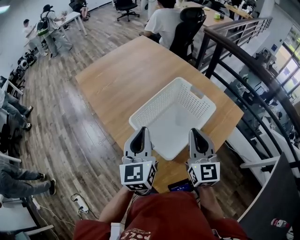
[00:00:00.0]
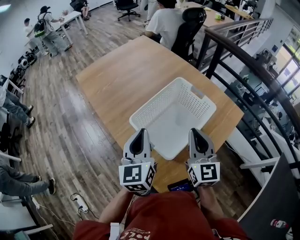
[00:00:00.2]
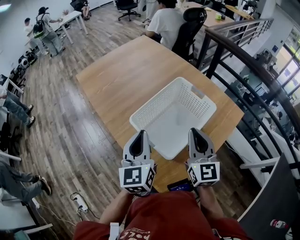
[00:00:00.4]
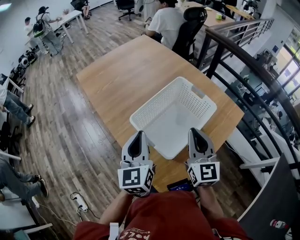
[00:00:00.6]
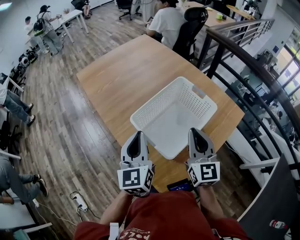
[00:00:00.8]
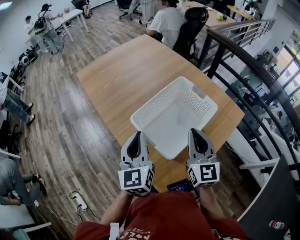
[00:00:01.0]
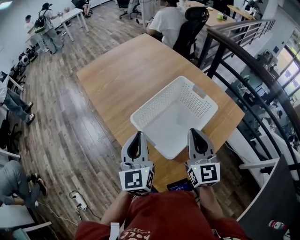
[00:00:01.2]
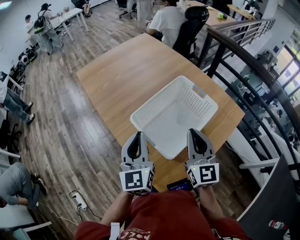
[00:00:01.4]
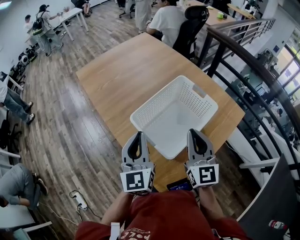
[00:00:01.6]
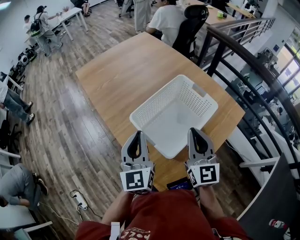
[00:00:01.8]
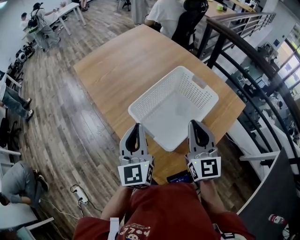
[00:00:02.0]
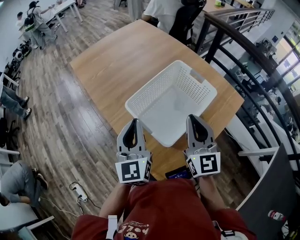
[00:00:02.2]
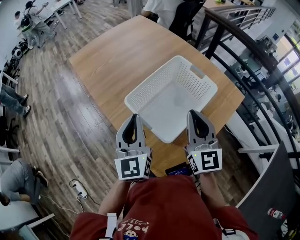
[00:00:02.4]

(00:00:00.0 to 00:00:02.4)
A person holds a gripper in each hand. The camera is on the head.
00:00:00.0 - 00:00:02.4: The grippers move only a little.

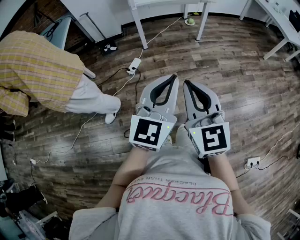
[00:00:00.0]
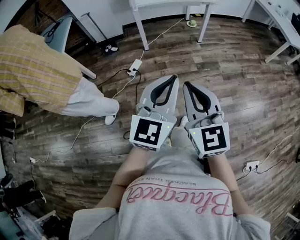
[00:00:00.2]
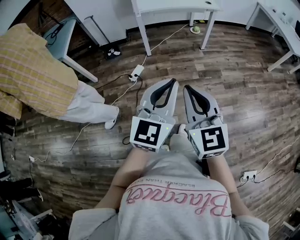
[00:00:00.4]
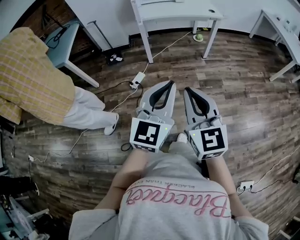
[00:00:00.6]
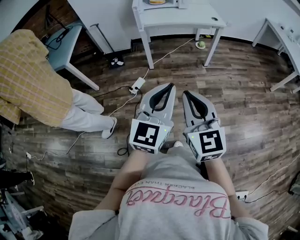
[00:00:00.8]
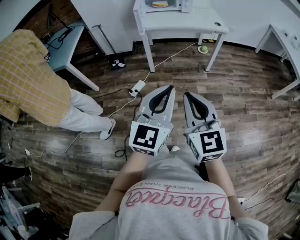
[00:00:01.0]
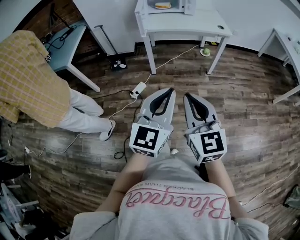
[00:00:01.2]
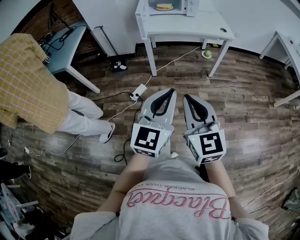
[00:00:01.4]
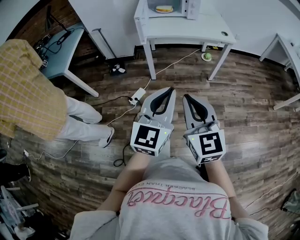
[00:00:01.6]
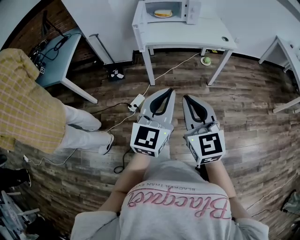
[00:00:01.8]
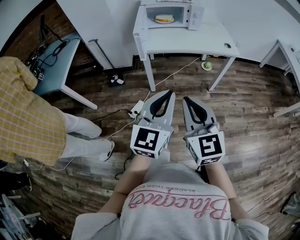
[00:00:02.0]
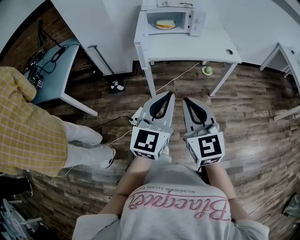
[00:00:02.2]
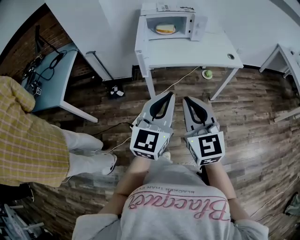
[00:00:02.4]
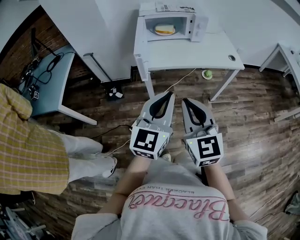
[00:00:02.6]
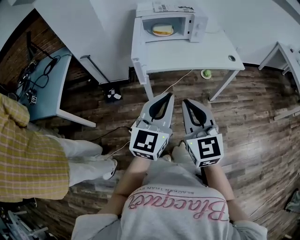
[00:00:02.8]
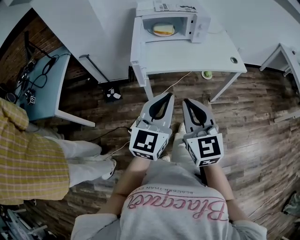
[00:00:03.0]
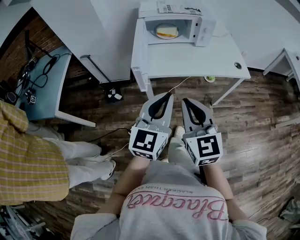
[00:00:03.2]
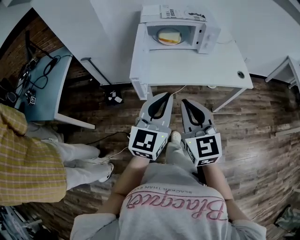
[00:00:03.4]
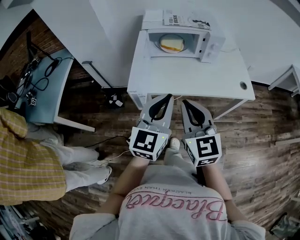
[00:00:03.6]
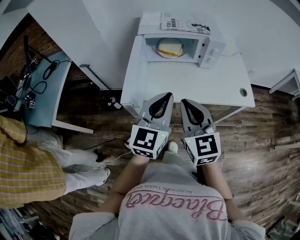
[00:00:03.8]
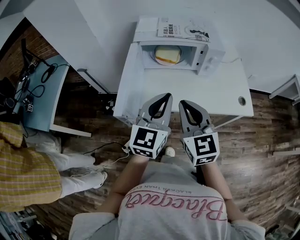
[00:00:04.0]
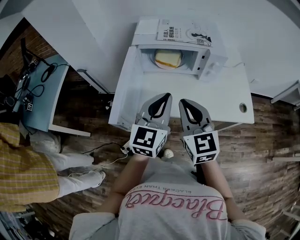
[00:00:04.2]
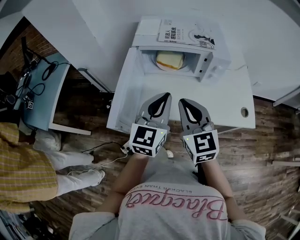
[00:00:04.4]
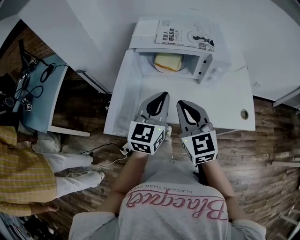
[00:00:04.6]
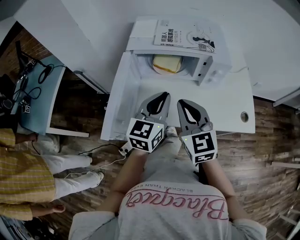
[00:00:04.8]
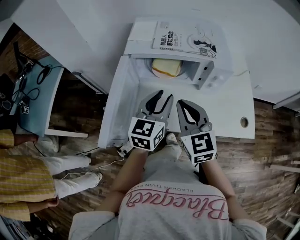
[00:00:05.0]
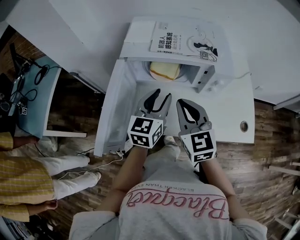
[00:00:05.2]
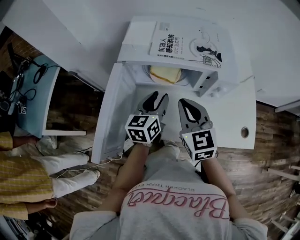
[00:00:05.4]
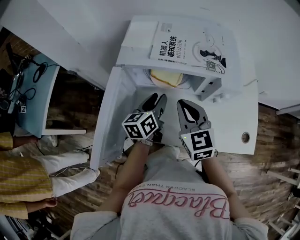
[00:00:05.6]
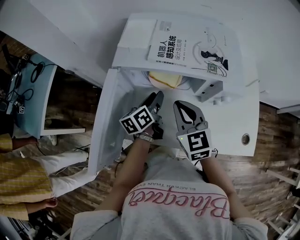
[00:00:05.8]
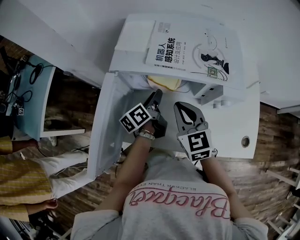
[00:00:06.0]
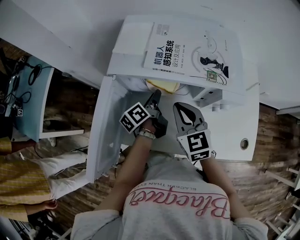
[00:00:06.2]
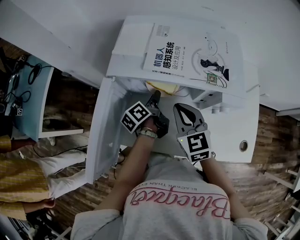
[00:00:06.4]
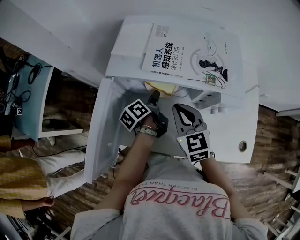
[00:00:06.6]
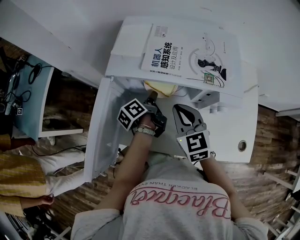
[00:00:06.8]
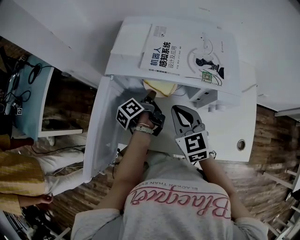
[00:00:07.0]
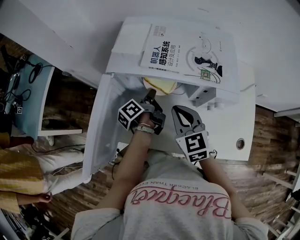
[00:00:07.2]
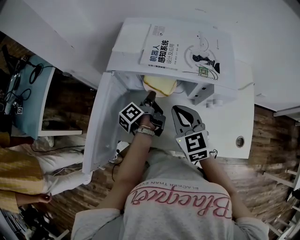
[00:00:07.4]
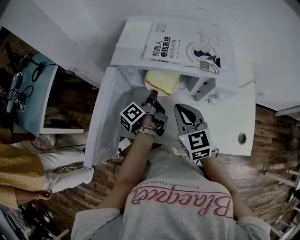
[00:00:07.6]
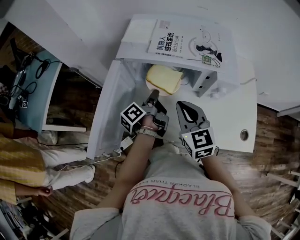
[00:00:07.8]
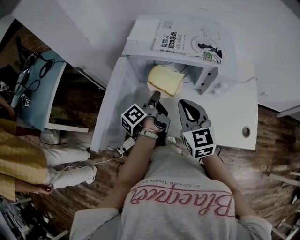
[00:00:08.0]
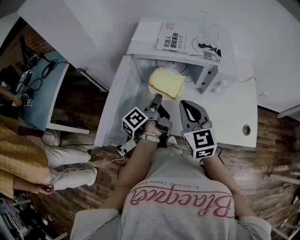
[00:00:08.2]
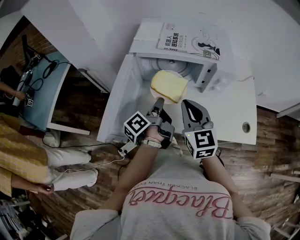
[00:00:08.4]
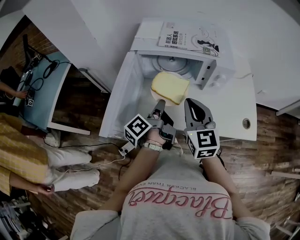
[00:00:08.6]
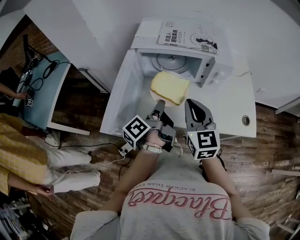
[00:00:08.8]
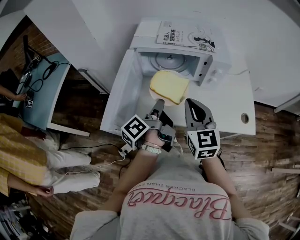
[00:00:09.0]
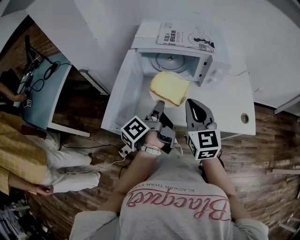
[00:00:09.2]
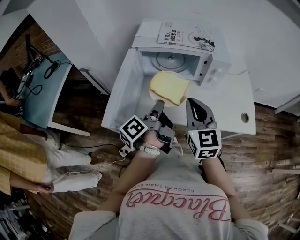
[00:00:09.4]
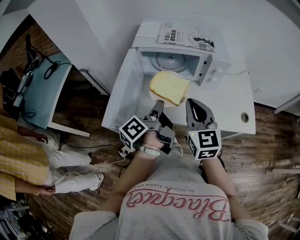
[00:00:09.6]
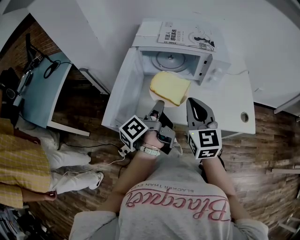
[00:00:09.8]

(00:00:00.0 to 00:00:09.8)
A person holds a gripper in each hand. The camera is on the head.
00:00:00.0 - 00:00:01.4: Both grippers move forward, some 25 cm.
00:00:01.4 - 00:00:02.8: Both grippers move forward, approximately 35 cm.
00:00:02.8 - 00:00:04.2: The two grippers go about 30 cm forward.
00:00:04.2 - 00:00:05.6: The two grippers go about 25 cm forward and downward. The left gripper swivels approximately 40 degrees, and opens its fingers.
00:00:05.6 - 00:00:07.0: The left gripper is displaced downward and forward by roughly 10 cm, twists approximately 50 degrees counterclockwise, seen from behind, and closes up.
00:00:07.0 - 00:00:08.4: The grippers both shift backward and upward by about 15 cm.
00:00:08.4 - 00:00:09.8: Both grippers move backward, some 5 cm.

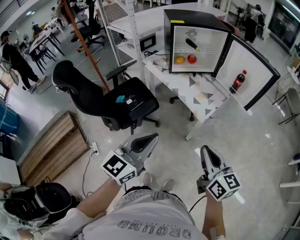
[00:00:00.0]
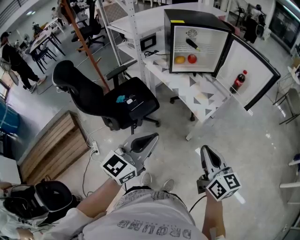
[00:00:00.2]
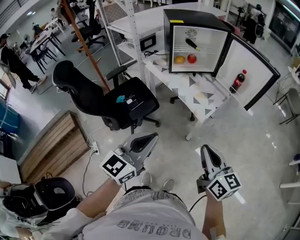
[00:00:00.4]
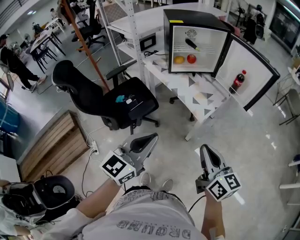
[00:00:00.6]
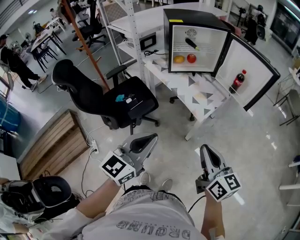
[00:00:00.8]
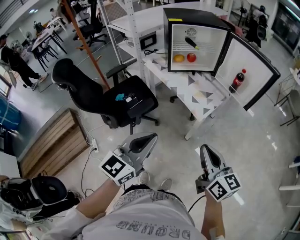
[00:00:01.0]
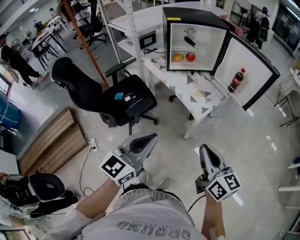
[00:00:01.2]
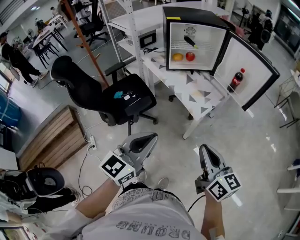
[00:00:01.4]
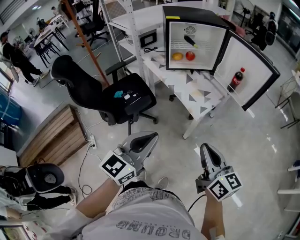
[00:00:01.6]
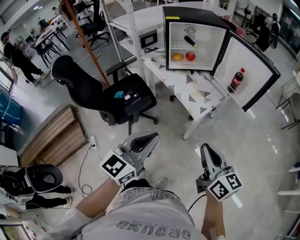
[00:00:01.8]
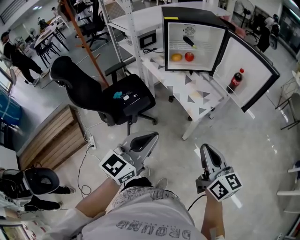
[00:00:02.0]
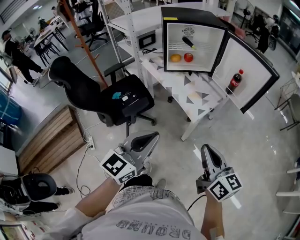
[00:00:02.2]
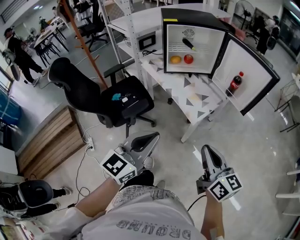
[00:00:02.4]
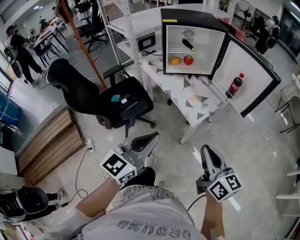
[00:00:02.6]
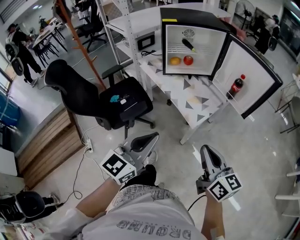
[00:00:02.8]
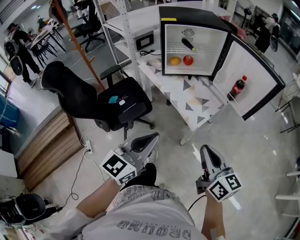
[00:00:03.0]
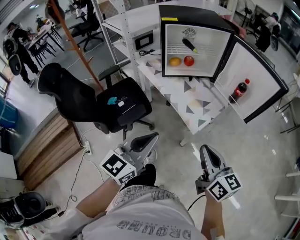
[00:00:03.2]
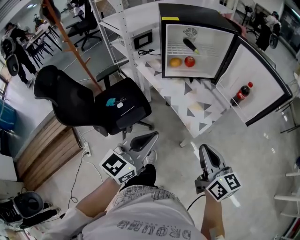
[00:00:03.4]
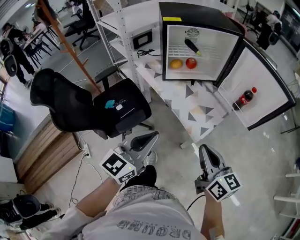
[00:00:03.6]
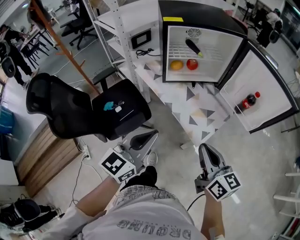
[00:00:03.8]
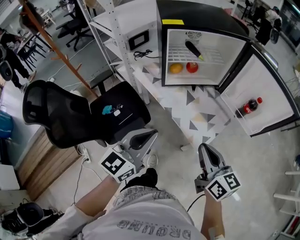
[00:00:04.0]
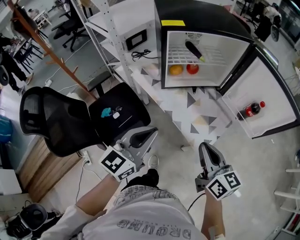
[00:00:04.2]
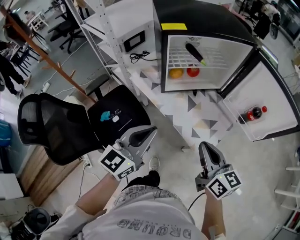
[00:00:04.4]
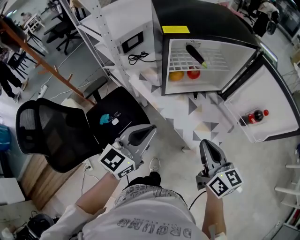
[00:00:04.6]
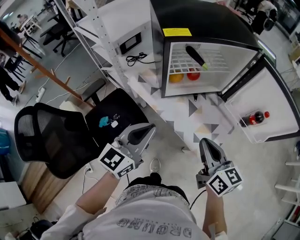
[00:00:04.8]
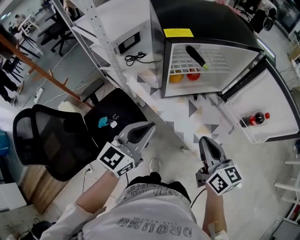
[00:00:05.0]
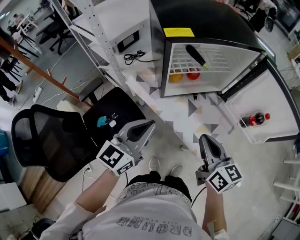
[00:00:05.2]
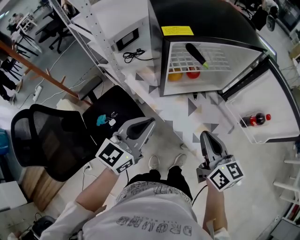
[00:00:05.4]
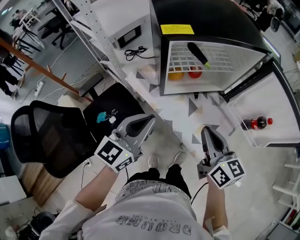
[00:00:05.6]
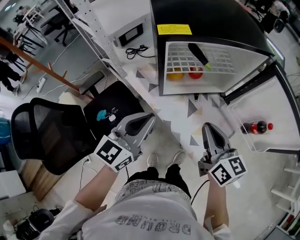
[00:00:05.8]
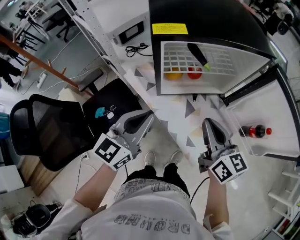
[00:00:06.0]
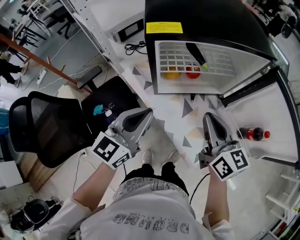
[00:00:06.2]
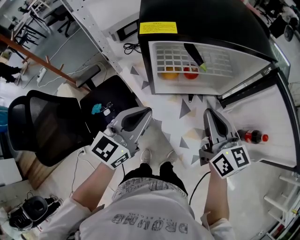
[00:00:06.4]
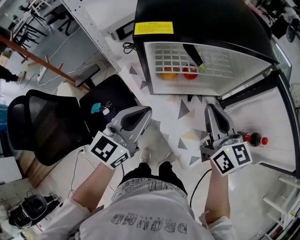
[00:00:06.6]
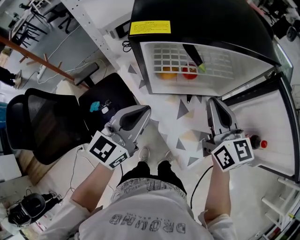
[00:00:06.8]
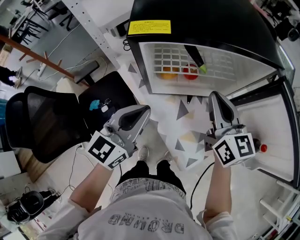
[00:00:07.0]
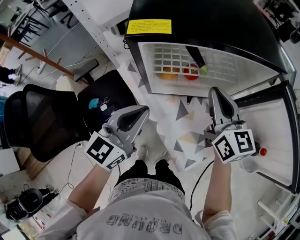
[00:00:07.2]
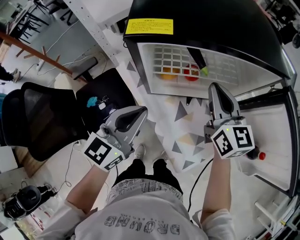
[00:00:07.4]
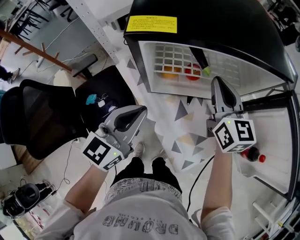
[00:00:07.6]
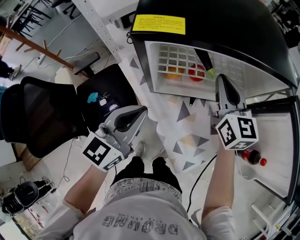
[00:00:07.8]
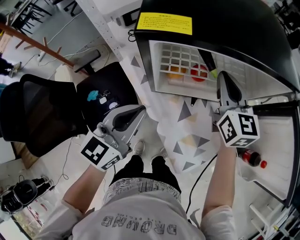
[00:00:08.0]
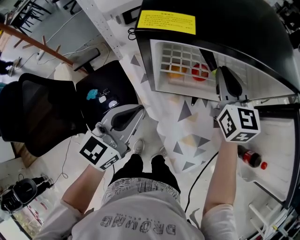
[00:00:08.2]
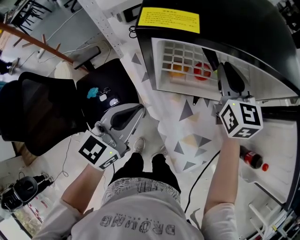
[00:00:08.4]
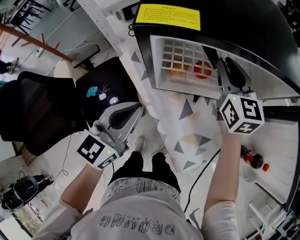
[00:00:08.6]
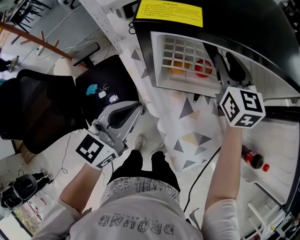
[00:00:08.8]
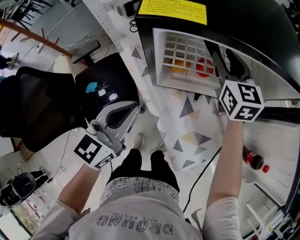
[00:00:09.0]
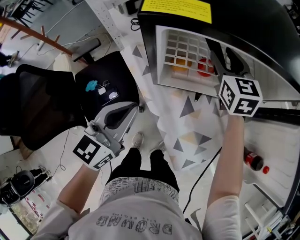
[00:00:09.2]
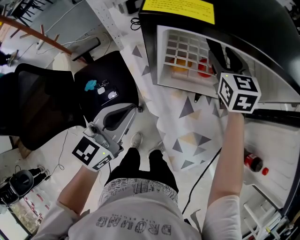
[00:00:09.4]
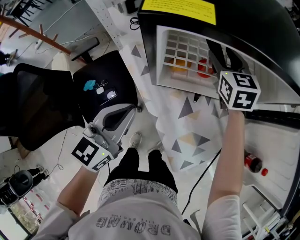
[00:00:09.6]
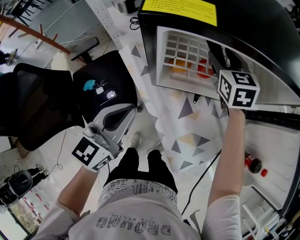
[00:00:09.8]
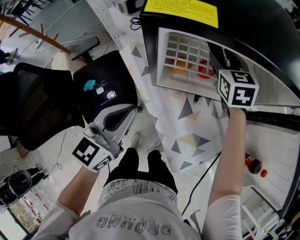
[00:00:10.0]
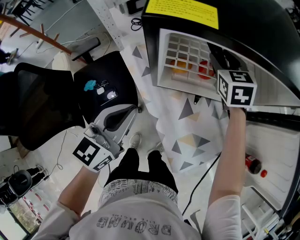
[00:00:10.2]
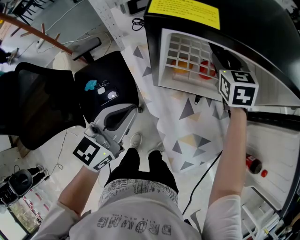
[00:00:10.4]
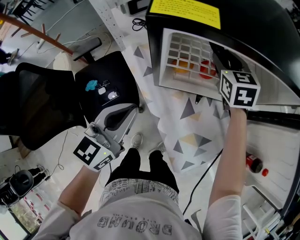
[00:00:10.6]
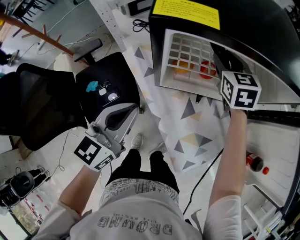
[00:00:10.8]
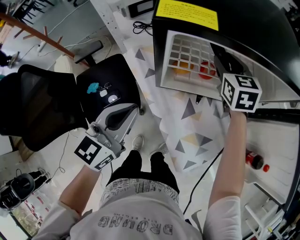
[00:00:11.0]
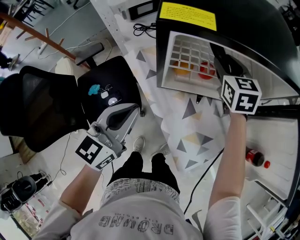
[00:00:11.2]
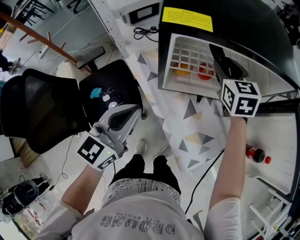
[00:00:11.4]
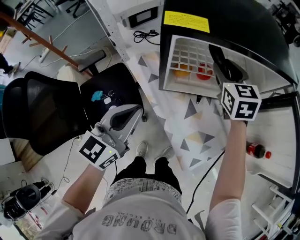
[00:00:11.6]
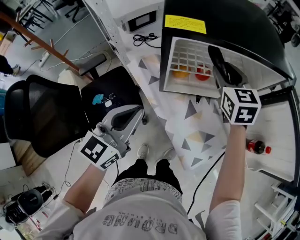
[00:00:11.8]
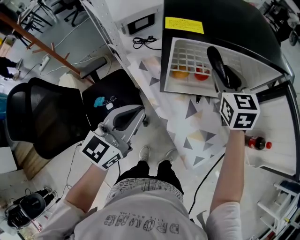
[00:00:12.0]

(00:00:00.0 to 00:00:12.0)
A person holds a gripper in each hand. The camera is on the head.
00:00:00.0 - 00:00:01.6: The grippers both shift to the right by about 5 cm.
00:00:01.6 - 00:00:03.0: Both grippers move forward, some 10 cm.
00:00:03.0 - 00:00:04.4: Both grippers move forward, about 25 cm.
00:00:04.4 - 00:00:06.0: The grippers both shift forward by approximately 15 cm.
00:00:06.0 - 00:00:07.6: The left gripper shifts some 5 cm forward; the right gripper goes some 20 cm forward.
00:00:07.6 - 00:00:09.0: The right gripper moves forward, roughly 10 cm, and opens its fingers.
00:00:09.0 - 00:00:10.4: The right gripper shifts by roughly 5 cm.
00:00:10.4 - 00:00:12.0: The left gripper is displaced upward by roughly 5 cm; the right gripper goes roughly 15 cm backward and upward.
